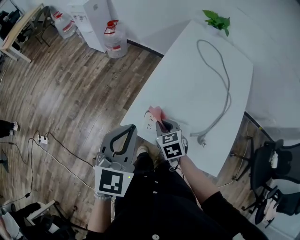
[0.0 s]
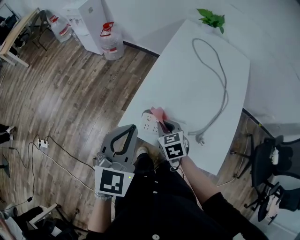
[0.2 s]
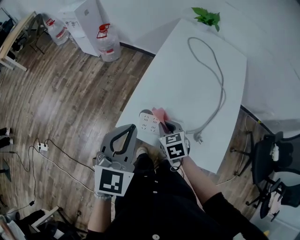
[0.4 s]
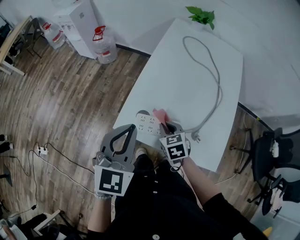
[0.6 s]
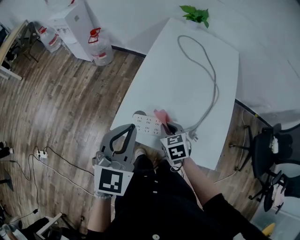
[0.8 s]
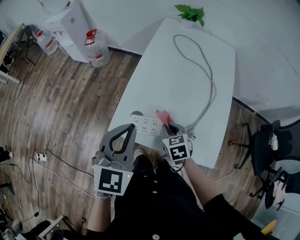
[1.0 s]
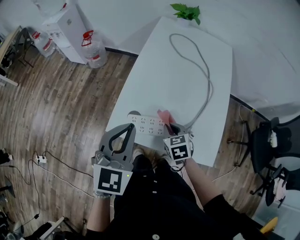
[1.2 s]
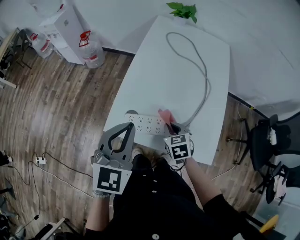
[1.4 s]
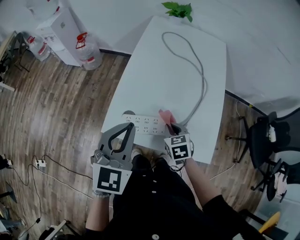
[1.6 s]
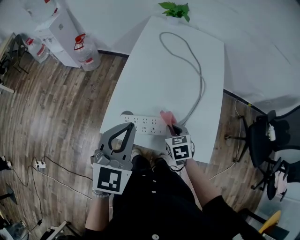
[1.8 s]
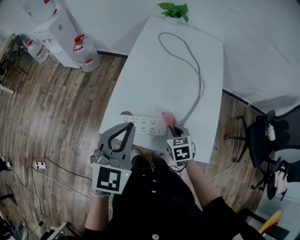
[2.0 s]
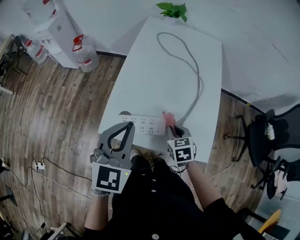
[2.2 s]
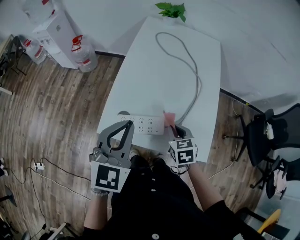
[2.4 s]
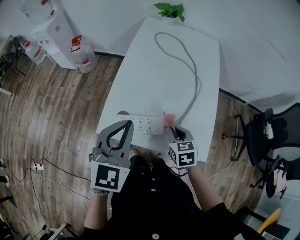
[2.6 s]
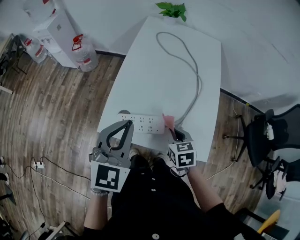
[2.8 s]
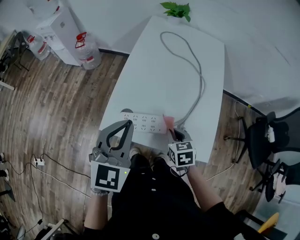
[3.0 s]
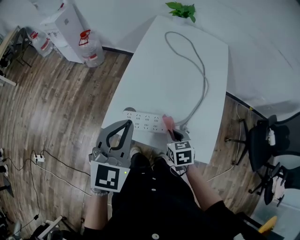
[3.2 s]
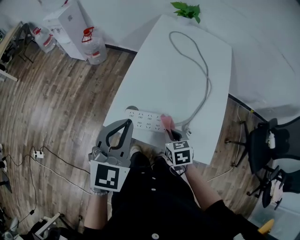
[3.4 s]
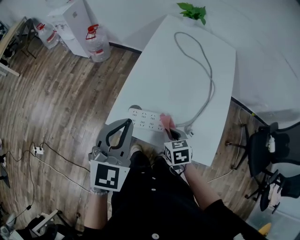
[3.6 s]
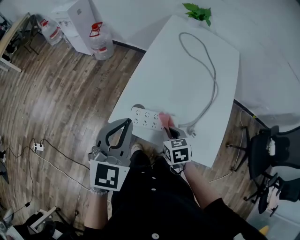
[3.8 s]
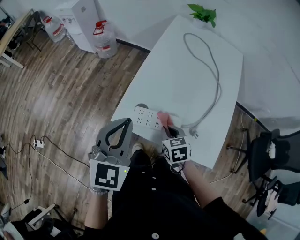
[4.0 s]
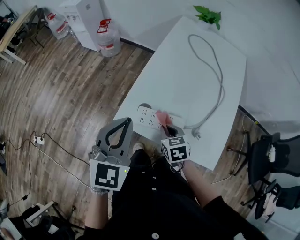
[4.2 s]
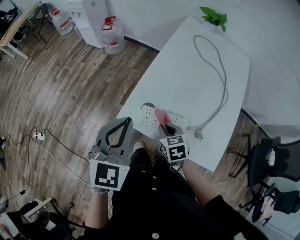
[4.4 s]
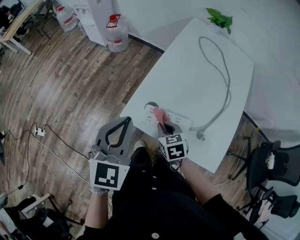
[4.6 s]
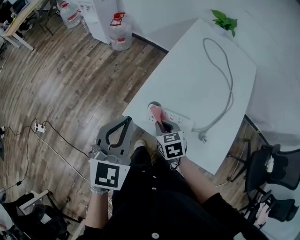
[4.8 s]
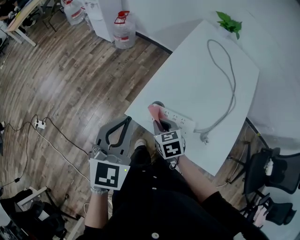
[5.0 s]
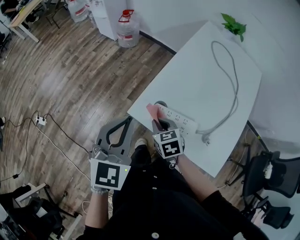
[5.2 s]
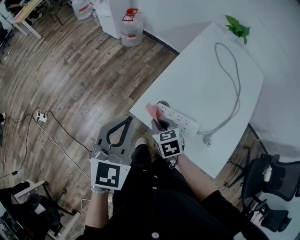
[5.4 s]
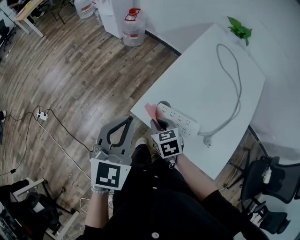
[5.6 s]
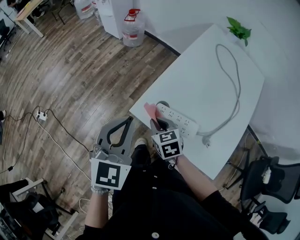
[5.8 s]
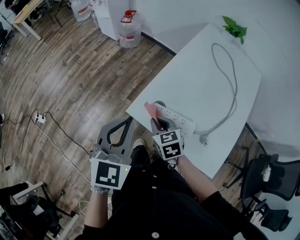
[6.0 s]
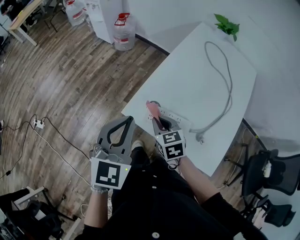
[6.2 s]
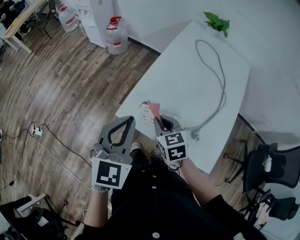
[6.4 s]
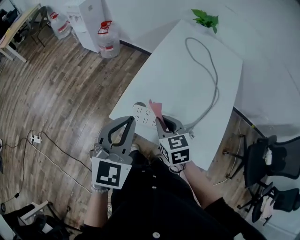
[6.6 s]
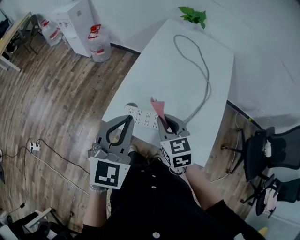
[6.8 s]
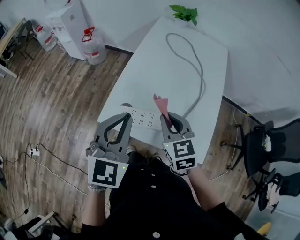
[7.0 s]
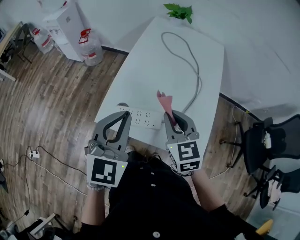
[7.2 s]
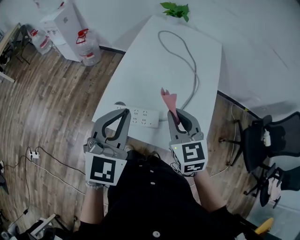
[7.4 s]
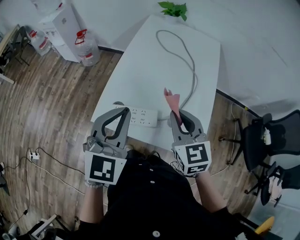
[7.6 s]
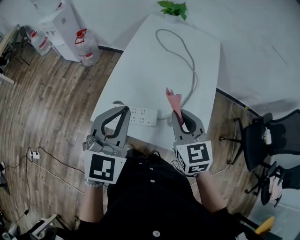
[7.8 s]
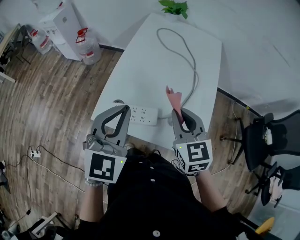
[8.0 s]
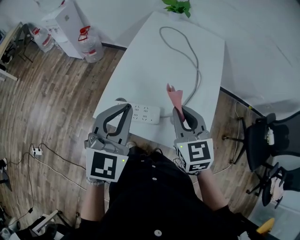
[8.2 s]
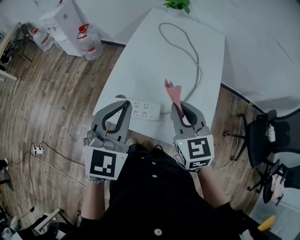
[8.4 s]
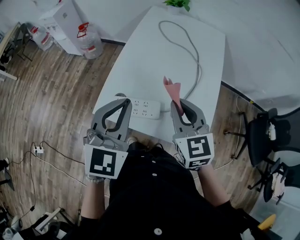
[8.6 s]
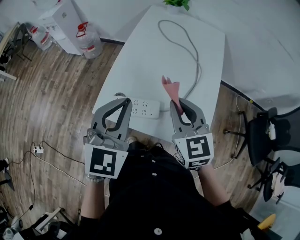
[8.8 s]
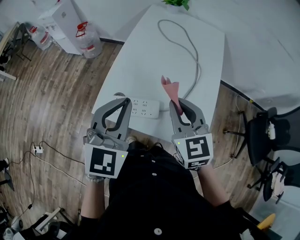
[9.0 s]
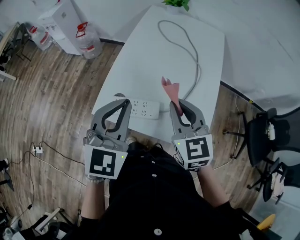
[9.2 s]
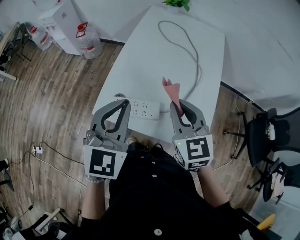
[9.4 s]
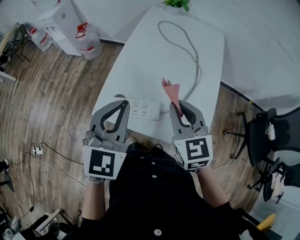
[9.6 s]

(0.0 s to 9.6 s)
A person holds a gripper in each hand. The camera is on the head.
0.0 s - 1.6 s: The right gripper goes roughly 15 cm to the right, while the left gripper travels to the right by some 10 cm.
1.6 s - 3.2 s: There are only small adjustments of the grippers.
3.2 s - 4.8 s: The two grippers go some 15 cm to the left. The right gripper swivels roughly 20 degrees.
4.8 s - 6.4 s: The right gripper shifts some 5 cm upward, and moves approximately 5 cm to the left and comes back.
6.4 s - 8.0 s: The left gripper travels to the right by about 15 cm. The right gripper shifts approximately 25 cm to the right and upward, and swivels approximately 30 degrees.
8.0 s - 9.6 s: There are only small adjustments of the grippers.

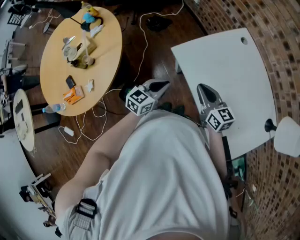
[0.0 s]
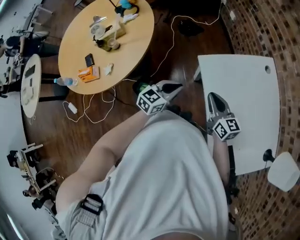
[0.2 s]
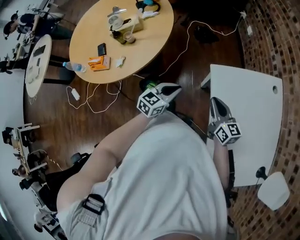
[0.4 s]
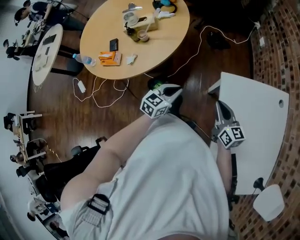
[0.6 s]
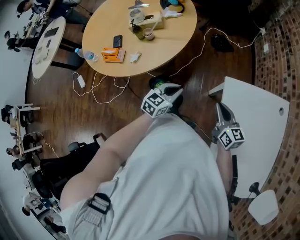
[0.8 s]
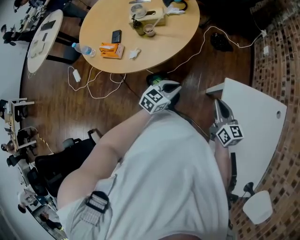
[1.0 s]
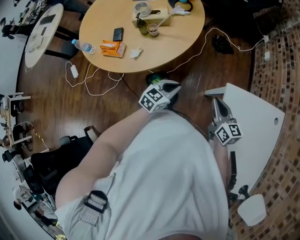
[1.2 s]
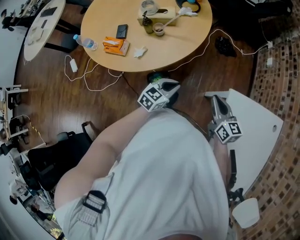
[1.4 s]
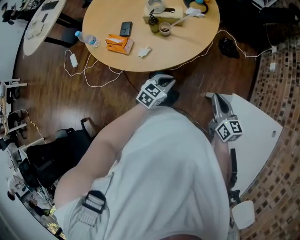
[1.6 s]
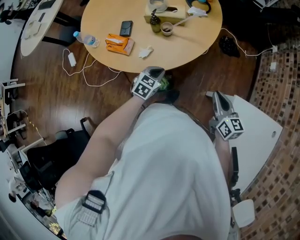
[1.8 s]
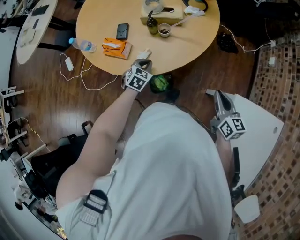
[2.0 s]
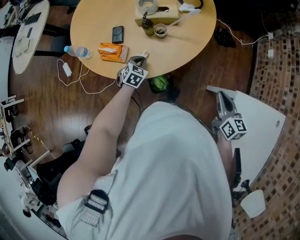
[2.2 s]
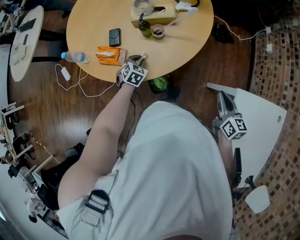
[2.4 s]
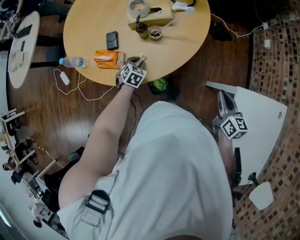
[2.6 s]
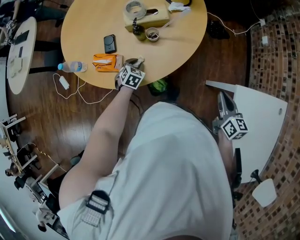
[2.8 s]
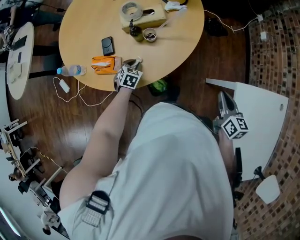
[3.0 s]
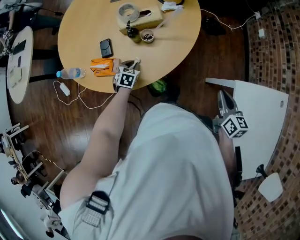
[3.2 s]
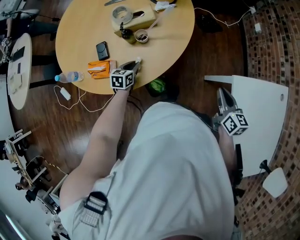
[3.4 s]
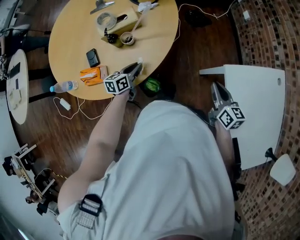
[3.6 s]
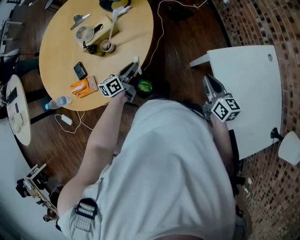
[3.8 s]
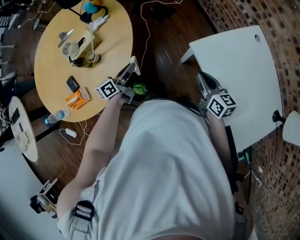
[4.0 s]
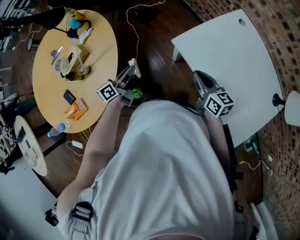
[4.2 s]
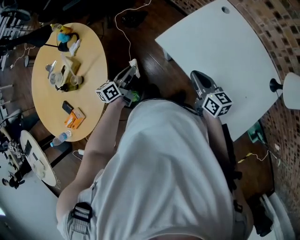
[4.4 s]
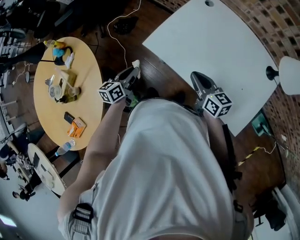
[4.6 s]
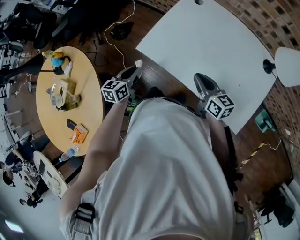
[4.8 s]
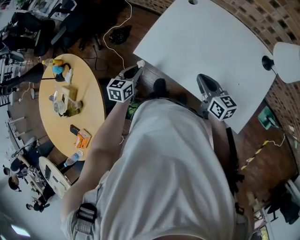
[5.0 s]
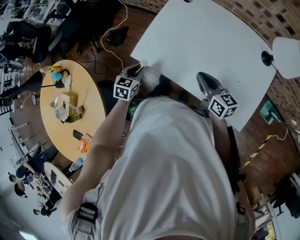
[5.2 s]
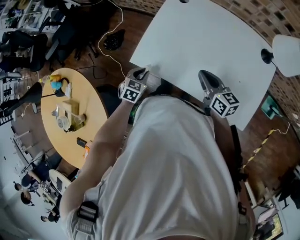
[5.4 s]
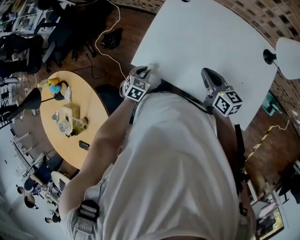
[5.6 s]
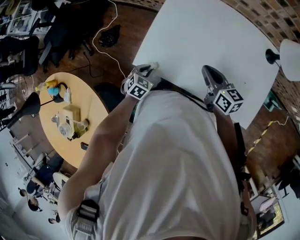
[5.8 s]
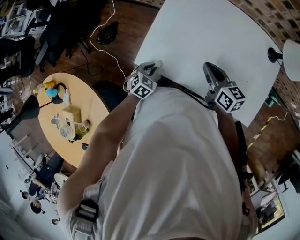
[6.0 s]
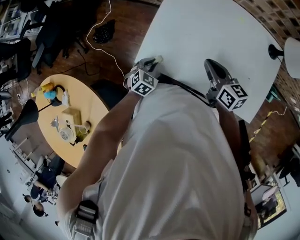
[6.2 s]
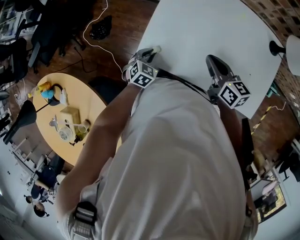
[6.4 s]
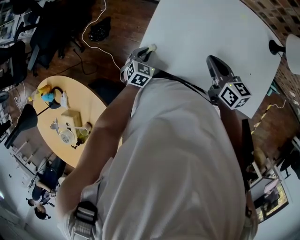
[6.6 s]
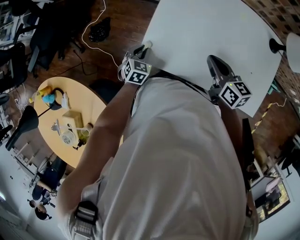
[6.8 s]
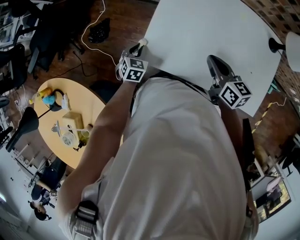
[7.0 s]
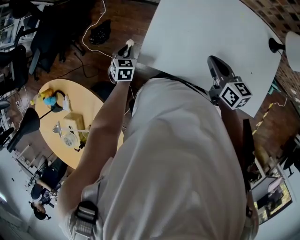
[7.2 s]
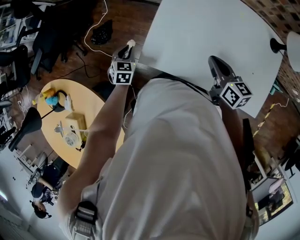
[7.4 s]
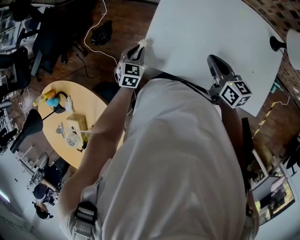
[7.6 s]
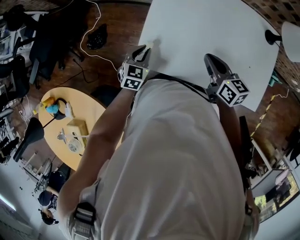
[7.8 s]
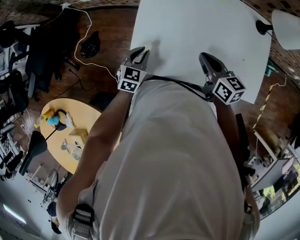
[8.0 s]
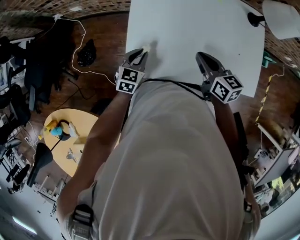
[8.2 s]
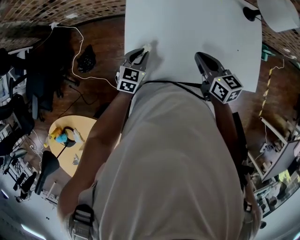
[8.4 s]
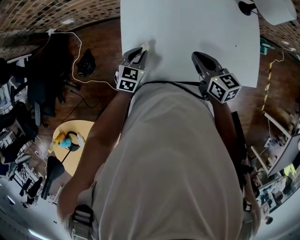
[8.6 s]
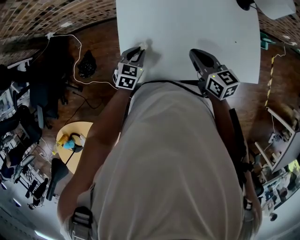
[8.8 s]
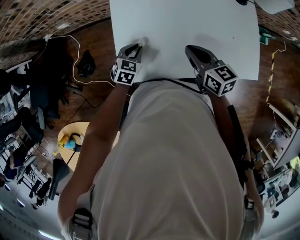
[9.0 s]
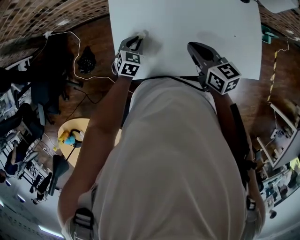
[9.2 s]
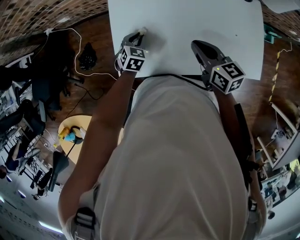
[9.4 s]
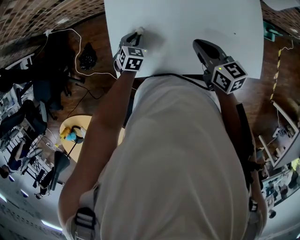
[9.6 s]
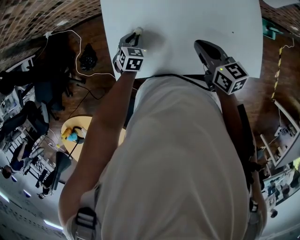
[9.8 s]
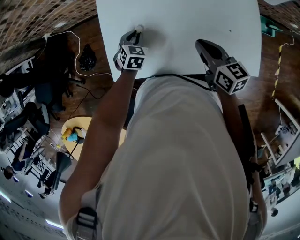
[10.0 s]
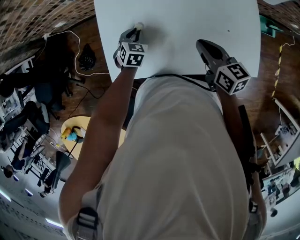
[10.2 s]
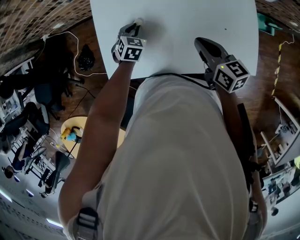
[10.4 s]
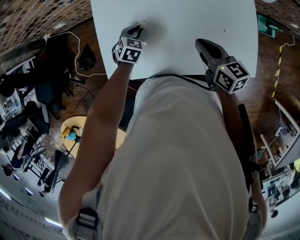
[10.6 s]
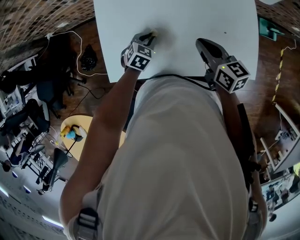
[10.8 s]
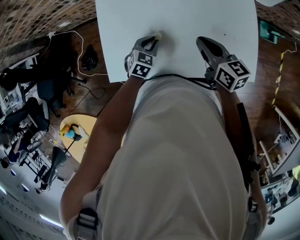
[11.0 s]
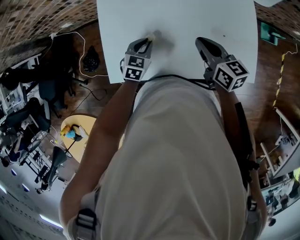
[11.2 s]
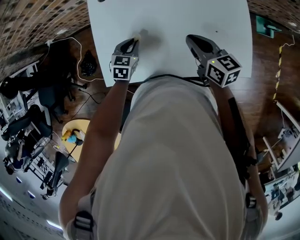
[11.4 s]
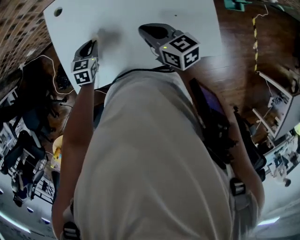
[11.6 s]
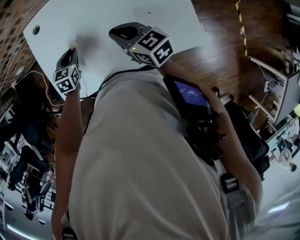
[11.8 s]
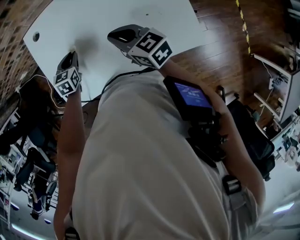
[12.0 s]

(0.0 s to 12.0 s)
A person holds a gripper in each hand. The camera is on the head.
0.0 s - 1.6 s: The left gripper ends up approximately 30 cm from where it was, and changes its angle by some 30 degrees. Meanwhile the right gripper shifts by some 25 cm, and changes its angle by approximately 30 degrees.
1.6 s - 3.0 s: The left gripper travels to the left, forward and downward by roughly 30 cm, changes its angle by some 30 degrees, and opens up, while the right gripper rotates some 20 degrees.
3.0 s - 4.4 s: The right gripper ends up roughly 25 cm from where it was, and changes its angle by about 30 degrees. Meanwhile the left gripper moves roughly 40 cm, and tips its fingers upward by roughly 40 degrees.
4.4 s - 6.0 s: The left gripper changes place by approximately 25 cm, and rotates around the line of its fingers by some 70 degrees, clockwise from behind, while the right gripper changes place by roughly 15 cm, and changes its angle by roughly 20 degrees.
6.0 s - 7.6 s: The left gripper moves forward, to the left and upward, about 15 cm.
7.6 s - 9.0 s: The left gripper shifts some 15 cm to the right and forward, and rotates about 30 degrees.
9.0 s - 10.4 s: The right gripper travels to the right by some 10 cm, while the left gripper heads to the right and forward, covering roughly 10 cm.

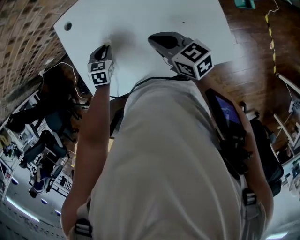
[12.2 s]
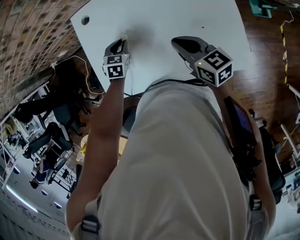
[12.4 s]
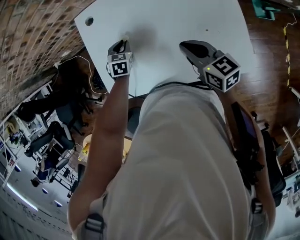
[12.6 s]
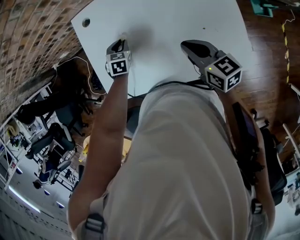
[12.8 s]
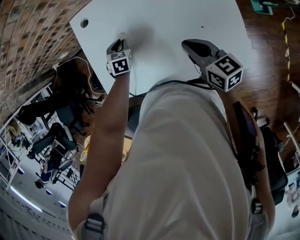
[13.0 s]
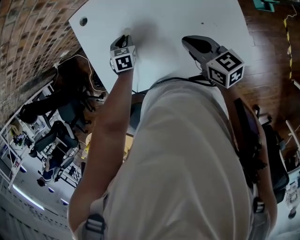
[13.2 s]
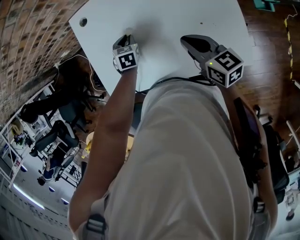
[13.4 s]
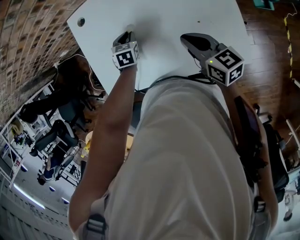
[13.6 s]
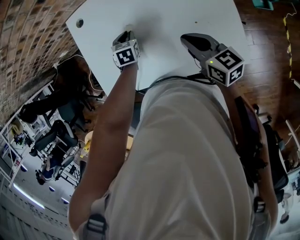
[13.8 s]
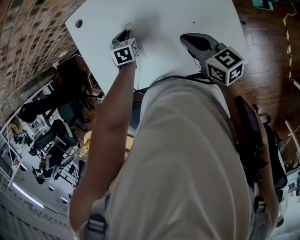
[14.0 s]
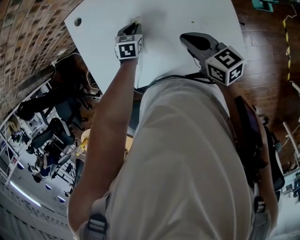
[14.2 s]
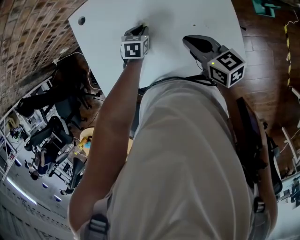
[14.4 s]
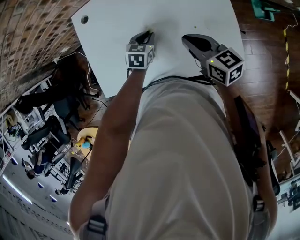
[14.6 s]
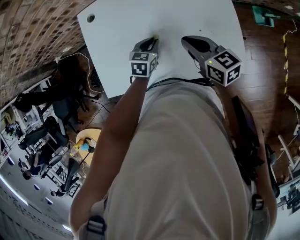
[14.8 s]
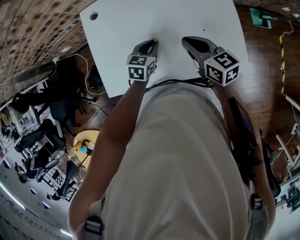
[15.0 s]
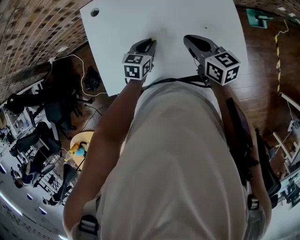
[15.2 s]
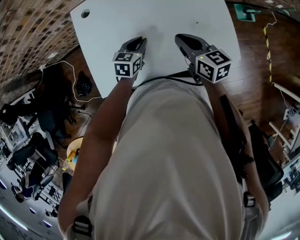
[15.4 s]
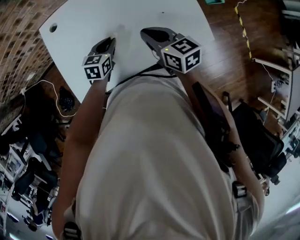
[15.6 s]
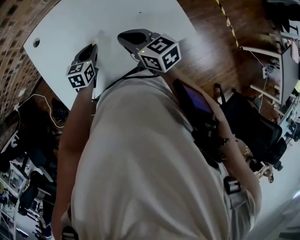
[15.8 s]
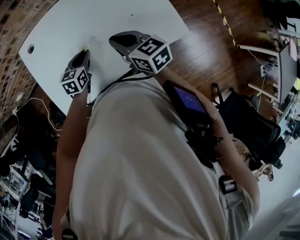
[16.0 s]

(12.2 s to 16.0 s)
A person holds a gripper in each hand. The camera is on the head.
12.2 s - 13.4 s: The left gripper moves some 5 cm; the right gripper shifts by approximately 5 cm.
13.4 s - 14.8 s: The left gripper shifts roughly 15 cm to the right and backward, and changes its angle by roughly 20 degrees.
14.8 s - 16.0 s: The left gripper travels to the left by about 5 cm. The right gripper shifts about 10 cm to the left and backward.
